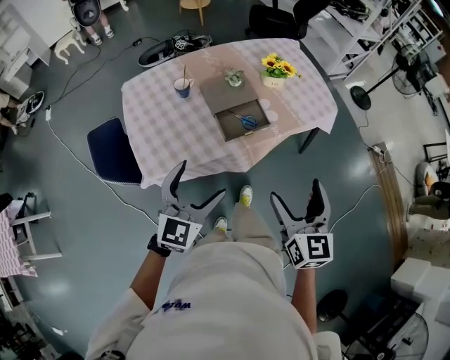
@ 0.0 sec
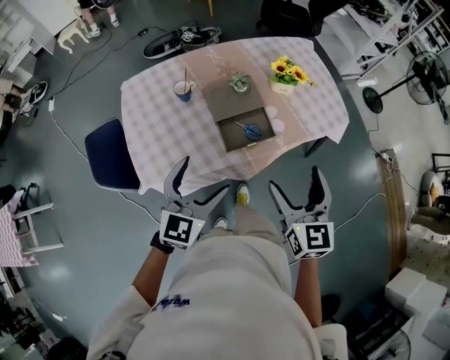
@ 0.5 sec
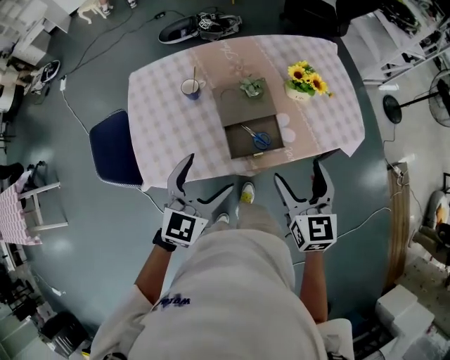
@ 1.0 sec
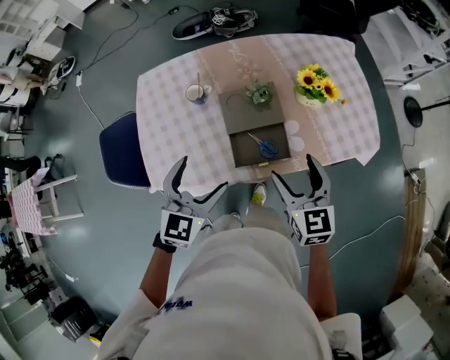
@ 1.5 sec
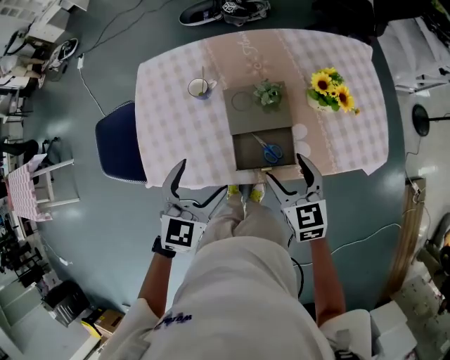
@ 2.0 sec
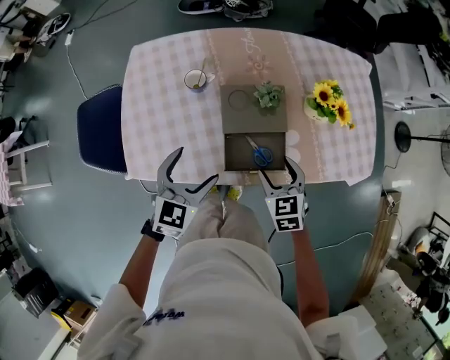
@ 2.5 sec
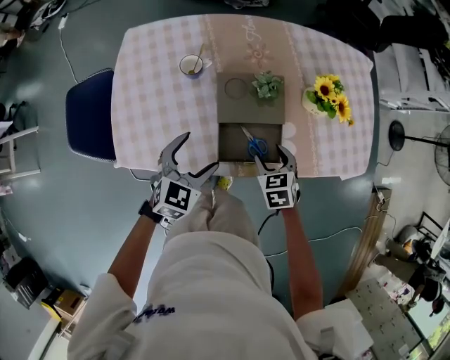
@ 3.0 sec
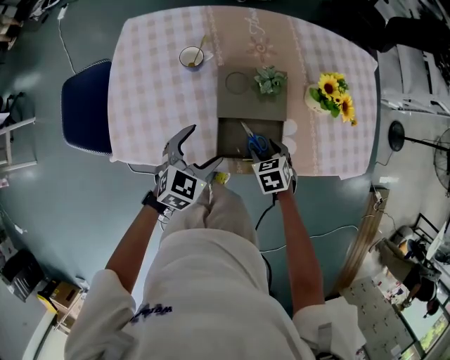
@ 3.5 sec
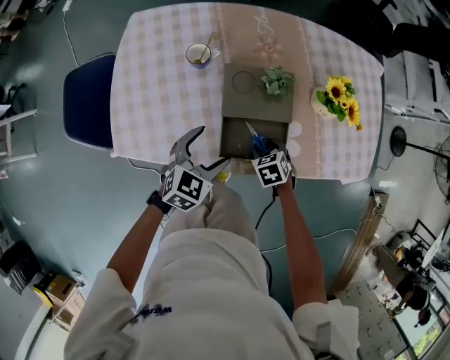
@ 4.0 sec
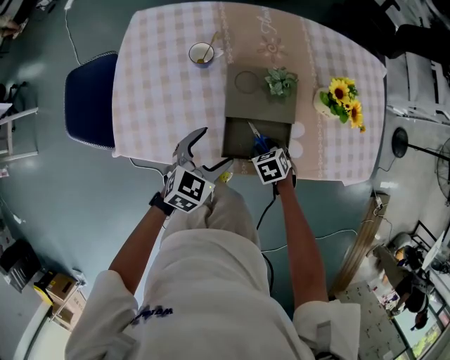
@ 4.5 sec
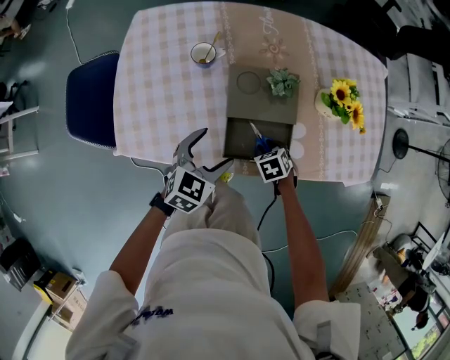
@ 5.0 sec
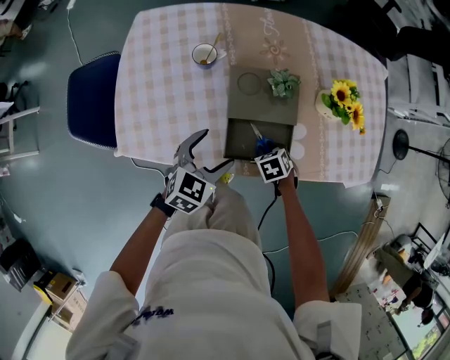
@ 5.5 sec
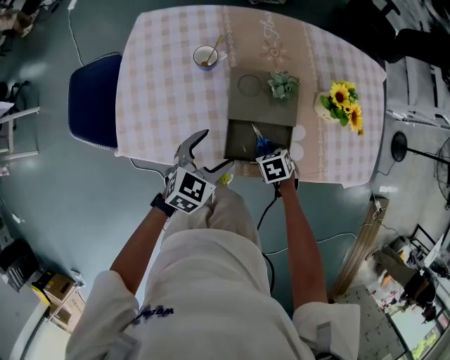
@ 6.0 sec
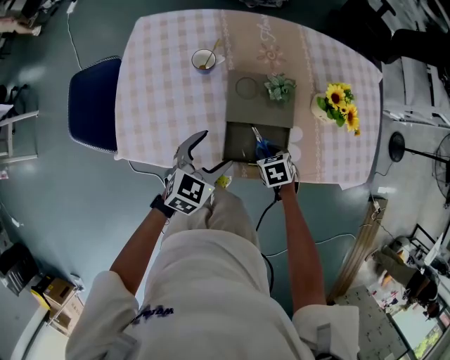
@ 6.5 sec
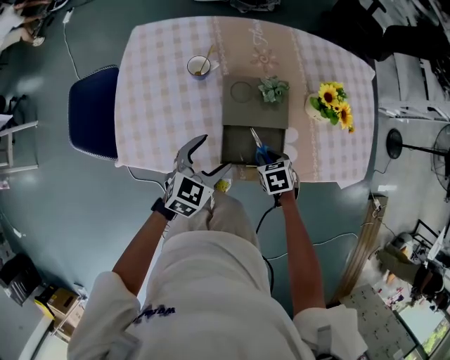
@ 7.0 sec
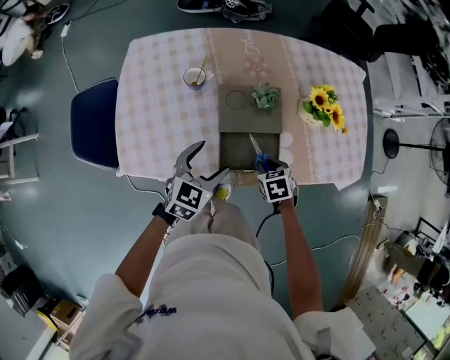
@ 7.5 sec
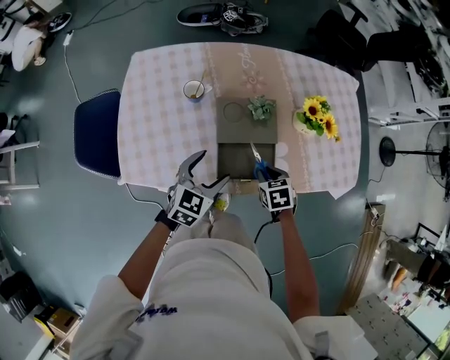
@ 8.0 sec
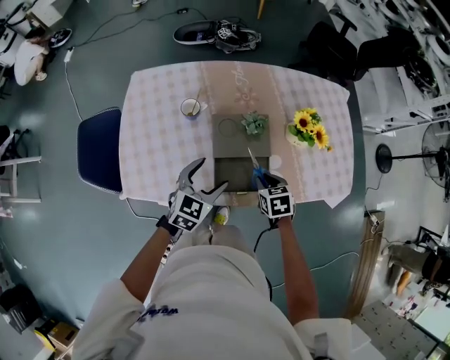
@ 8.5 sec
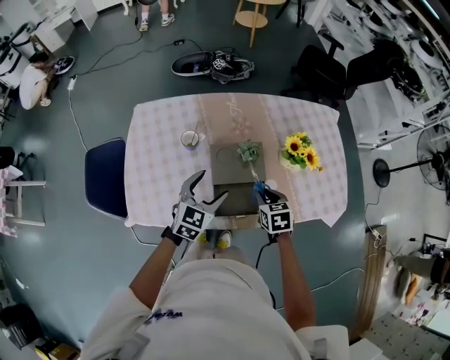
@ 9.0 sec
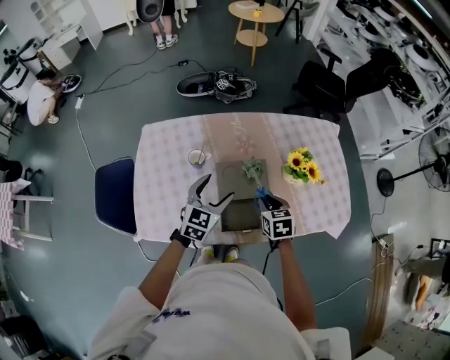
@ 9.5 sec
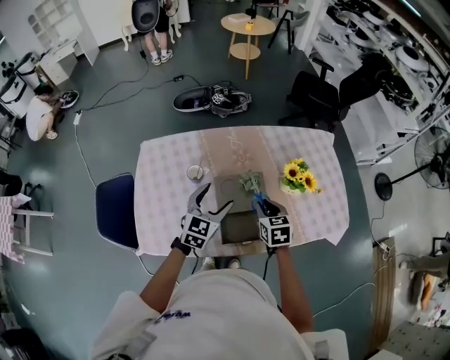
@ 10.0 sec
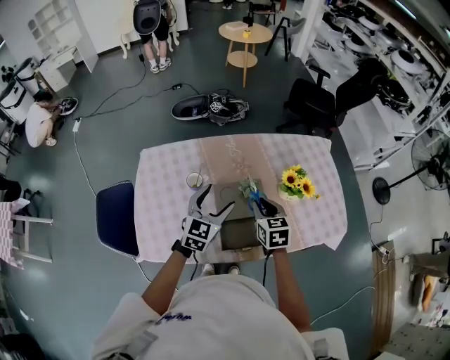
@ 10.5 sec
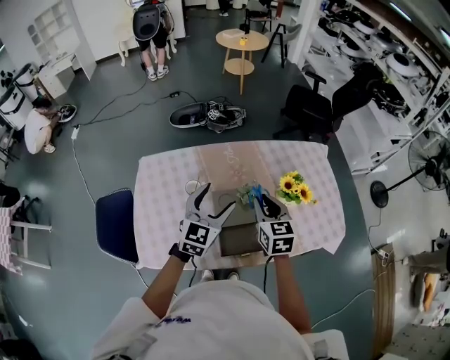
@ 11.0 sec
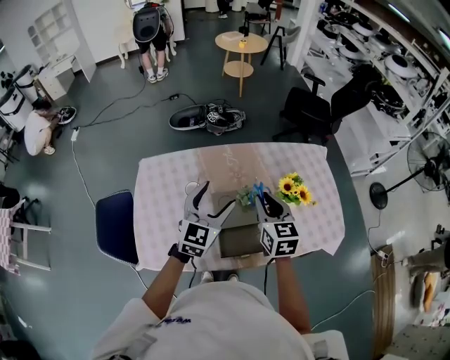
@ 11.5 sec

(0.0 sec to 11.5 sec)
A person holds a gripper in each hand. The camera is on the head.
0.0 sec - 2.0 sec: The right gripper moves some 35 cm, and rotates roughly 40 degrees; the left gripper changes place by approximately 25 cm, and turns by about 30 degrees.
2.0 sec - 4.0 sec: The right gripper shifts roughly 25 cm downward, and angles its fingers downward, by roughly 40 degrees. The left gripper heads downward, covering about 15 cm.
4.0 sec - 6.0 sec: There are only small adjustments of the grippers.
6.0 sec - 7.5 sec: The right gripper heads upward, covering roughly 5 cm.
7.5 sec - 9.5 sec: The right gripper is displaced upward and forward by roughly 15 cm, and rotates about 20 degrees. Meanwhile the left gripper is displaced forward and upward by roughly 15 cm.
9.5 sec - 11.5 sec: The grippers both shift upward by some 15 cm. The right gripper swivels some 30 degrees.

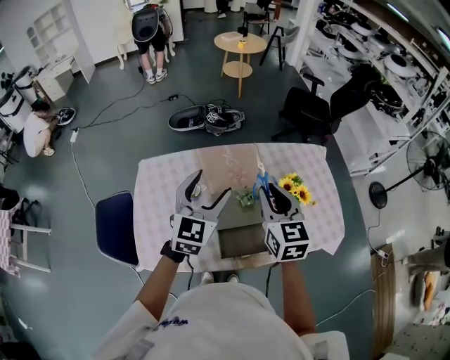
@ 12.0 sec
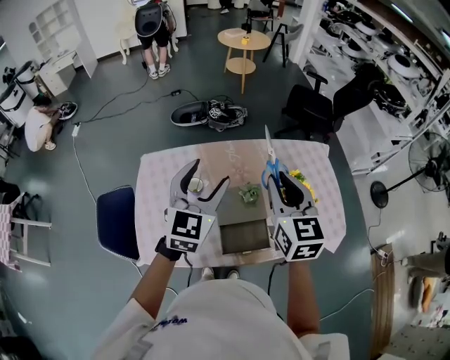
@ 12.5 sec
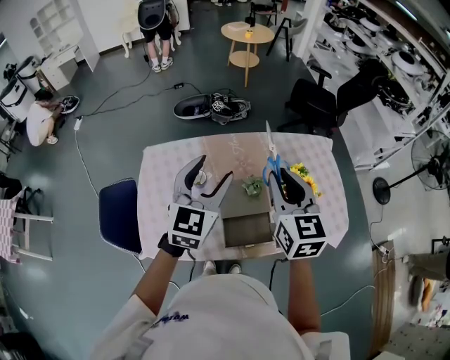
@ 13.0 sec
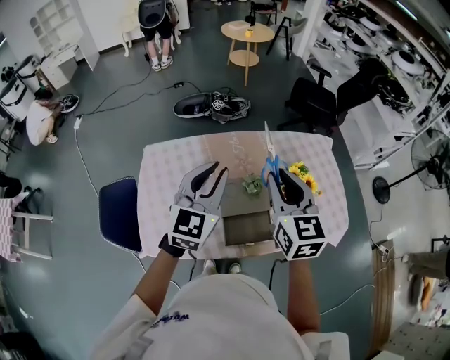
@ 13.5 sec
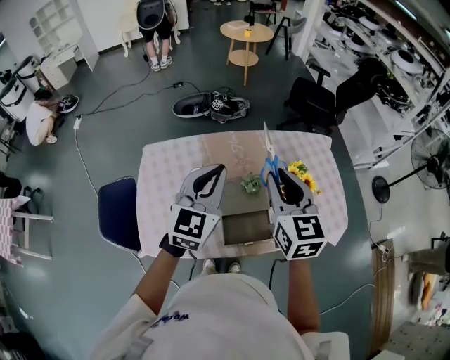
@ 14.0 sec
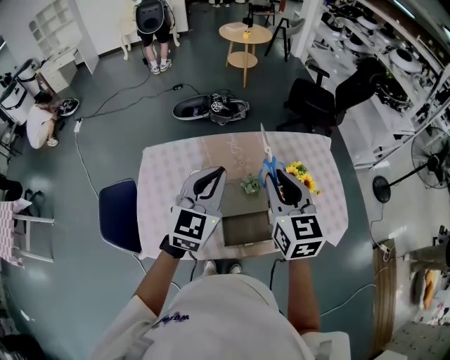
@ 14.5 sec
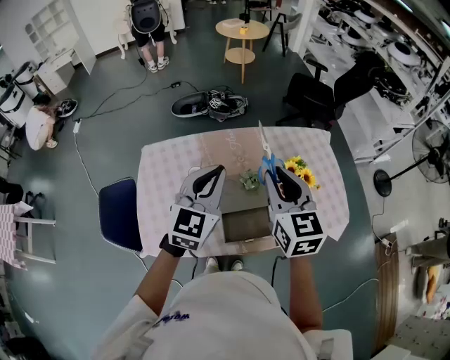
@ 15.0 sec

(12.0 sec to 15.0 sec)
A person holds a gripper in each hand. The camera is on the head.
12.0 sec - 13.5 sec: The right gripper moves about 5 cm; the left gripper closes up.
13.5 sec - 15.0 sec: The grippers stay close to where they were, moving slightly.

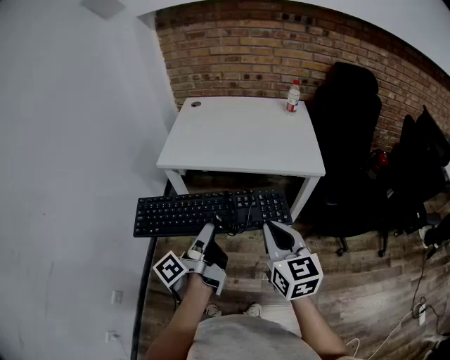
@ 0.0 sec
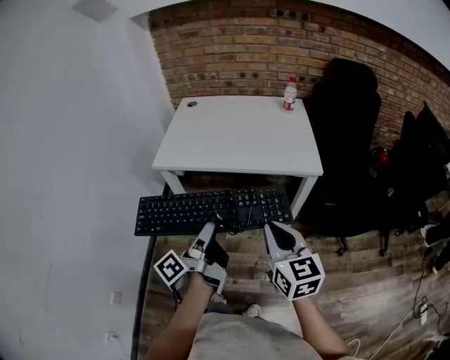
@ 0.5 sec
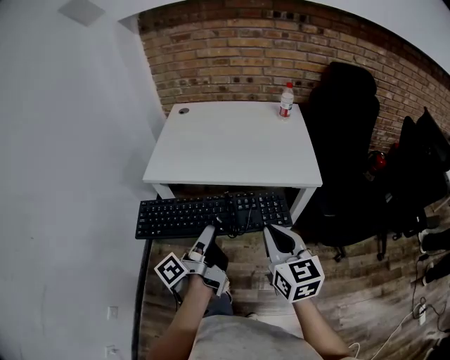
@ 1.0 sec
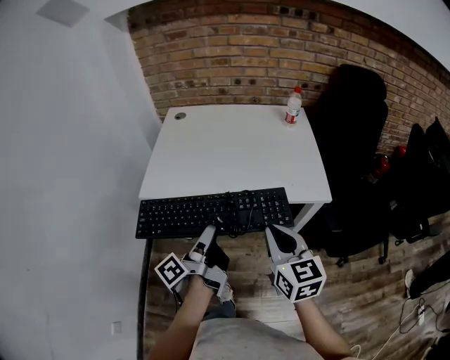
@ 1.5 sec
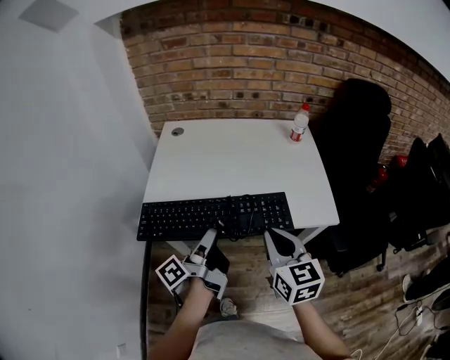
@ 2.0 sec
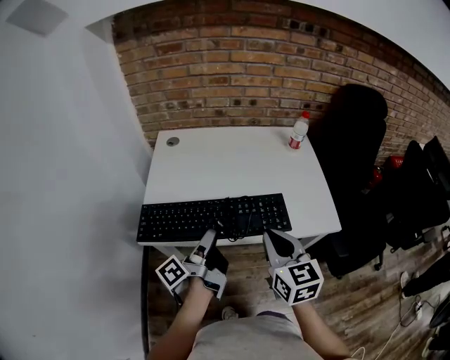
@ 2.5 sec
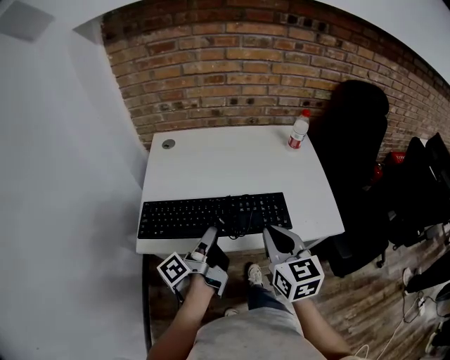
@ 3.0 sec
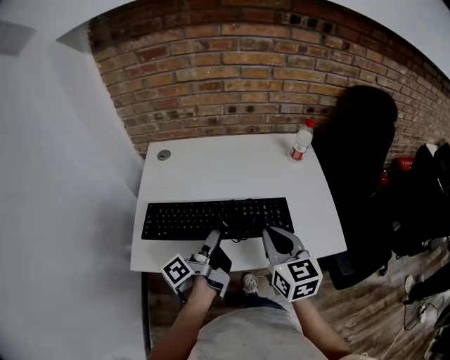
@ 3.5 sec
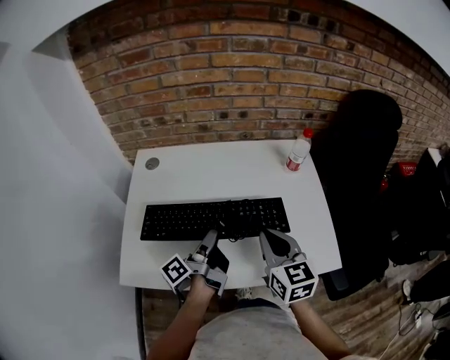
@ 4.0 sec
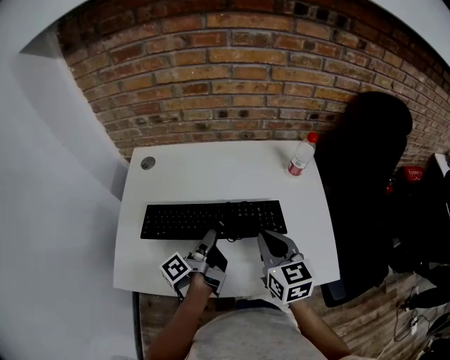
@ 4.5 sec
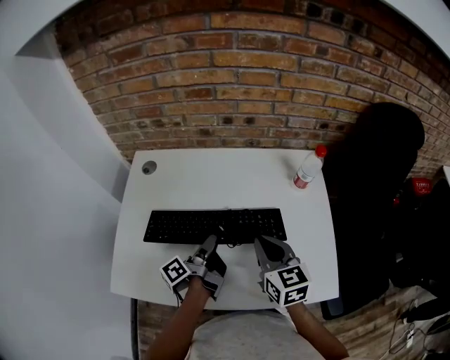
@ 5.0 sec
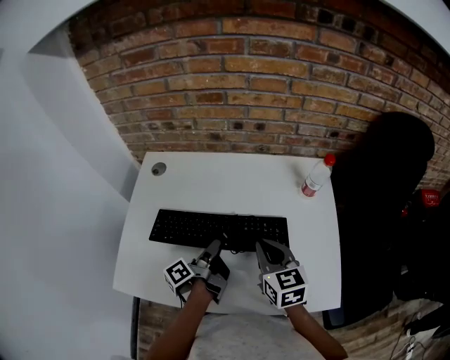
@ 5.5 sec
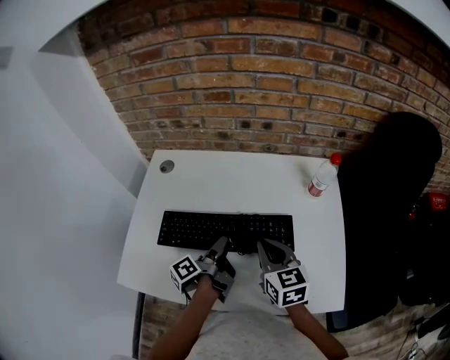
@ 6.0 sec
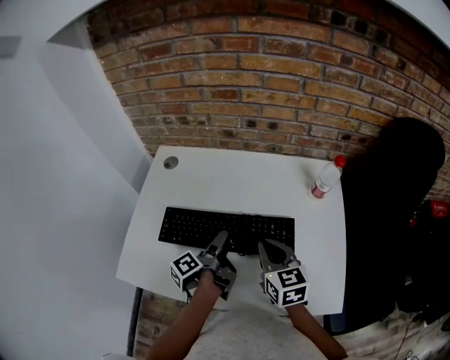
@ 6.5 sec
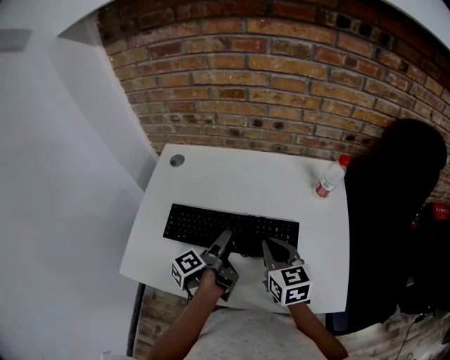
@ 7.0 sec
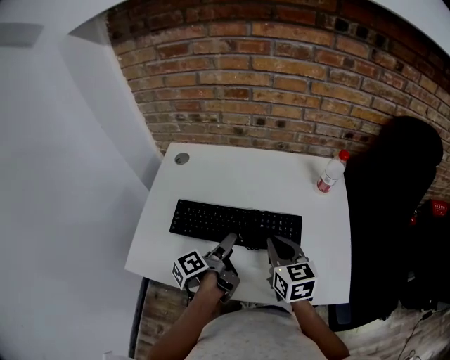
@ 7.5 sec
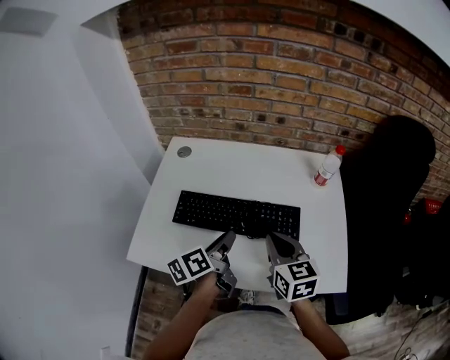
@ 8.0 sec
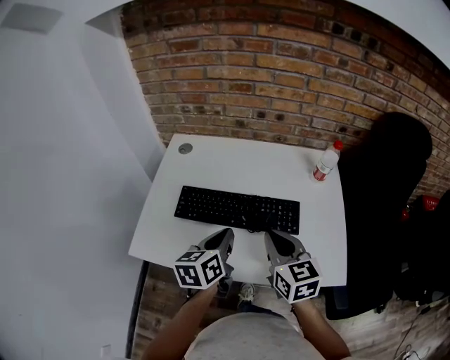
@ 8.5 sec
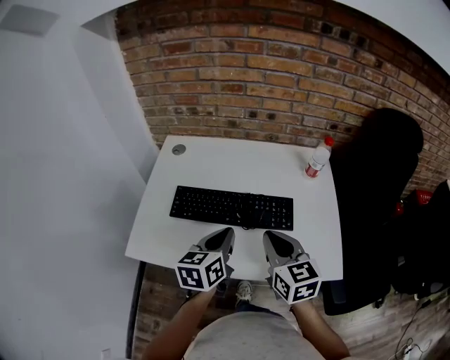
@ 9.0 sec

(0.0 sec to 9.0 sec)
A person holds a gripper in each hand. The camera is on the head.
0.0 sec - 2.0 sec: The right gripper ends up about 30 cm from where it was.
2.0 sec - 4.5 sec: The right gripper shifts by about 30 cm.
4.5 sec - 7.0 sec: The right gripper changes place by some 5 cm.
7.0 sec - 9.0 sec: The right gripper shifts by approximately 15 cm.

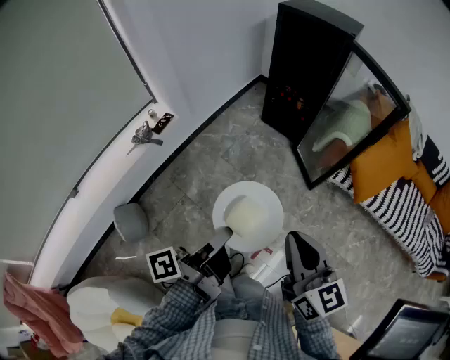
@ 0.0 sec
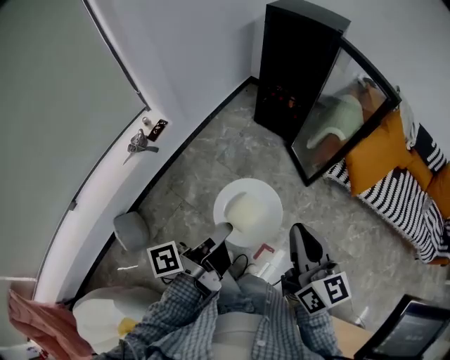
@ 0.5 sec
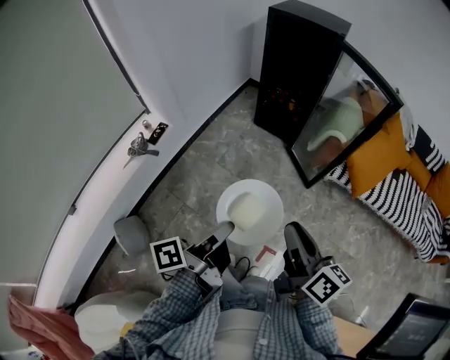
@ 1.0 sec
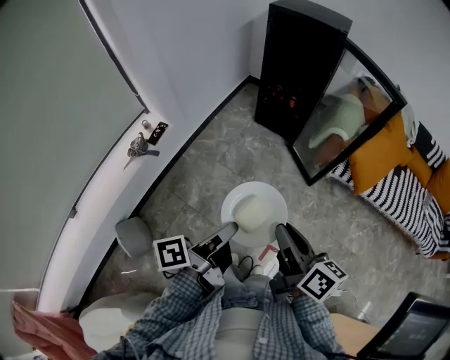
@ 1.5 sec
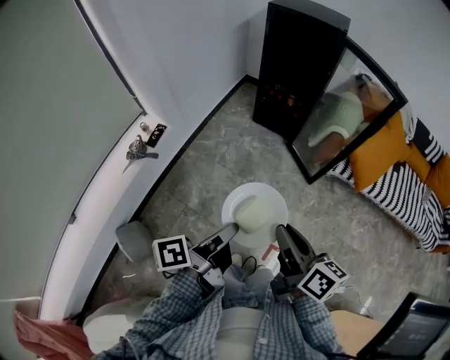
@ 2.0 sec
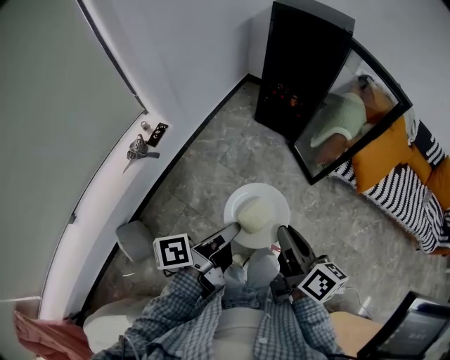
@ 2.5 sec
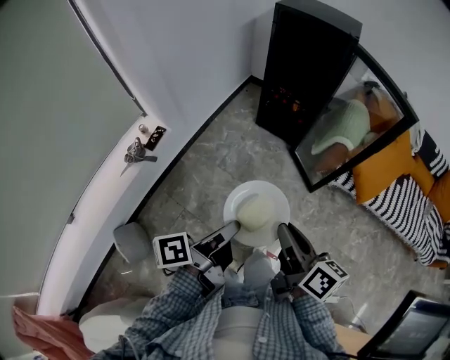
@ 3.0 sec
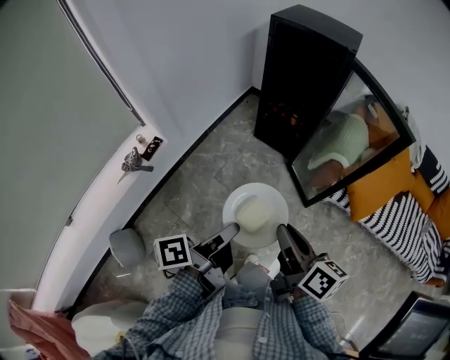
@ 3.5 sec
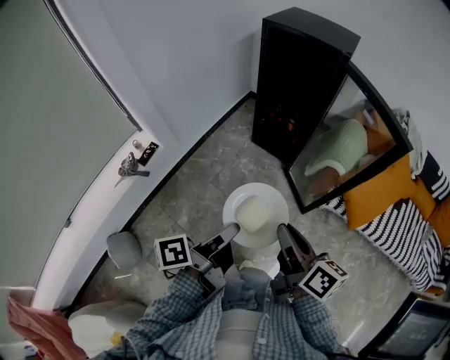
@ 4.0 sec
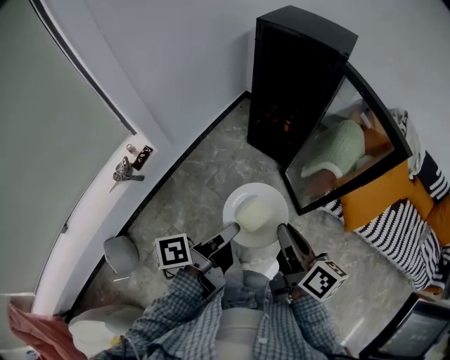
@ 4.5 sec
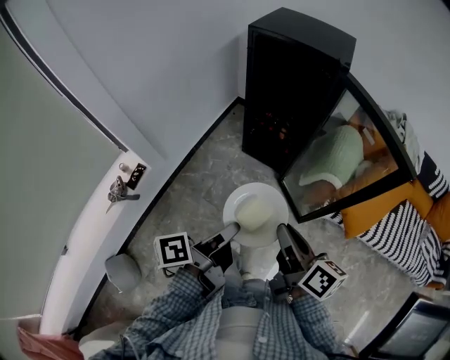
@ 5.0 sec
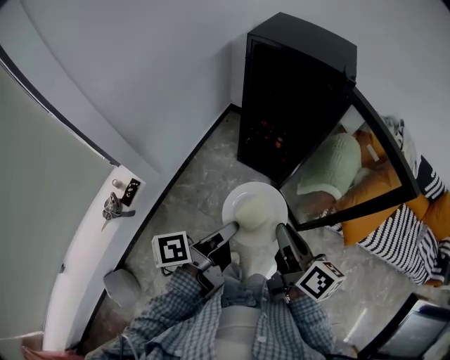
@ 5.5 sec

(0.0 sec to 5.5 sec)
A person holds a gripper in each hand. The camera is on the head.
0.0 sec - 2.0 sec: The right gripper moves approximately 10 cm, and changes its angle by approximately 40 degrees.
2.0 sec - 3.5 sec: The right gripper changes place by roughly 15 cm.
3.5 sec - 5.5 sec: The right gripper moves approximately 20 cm.
